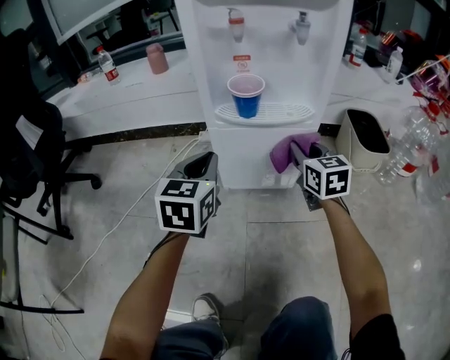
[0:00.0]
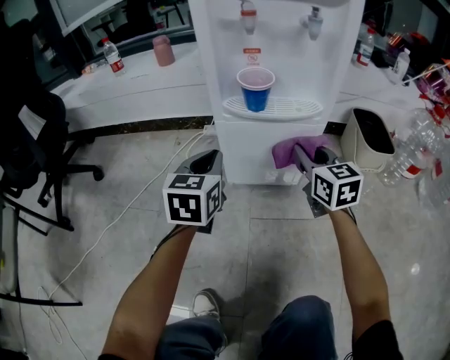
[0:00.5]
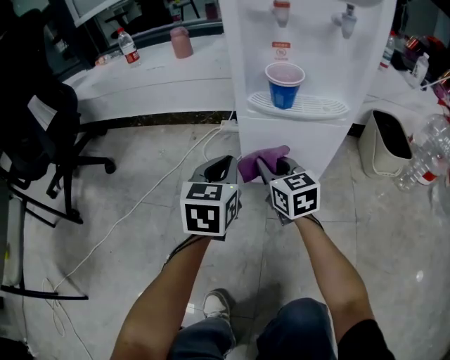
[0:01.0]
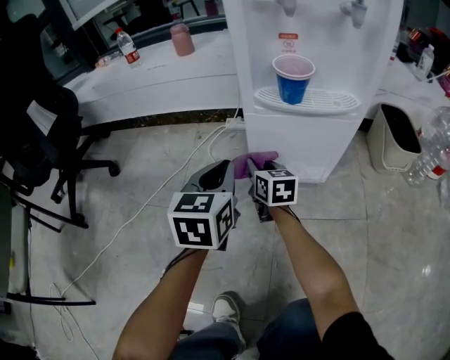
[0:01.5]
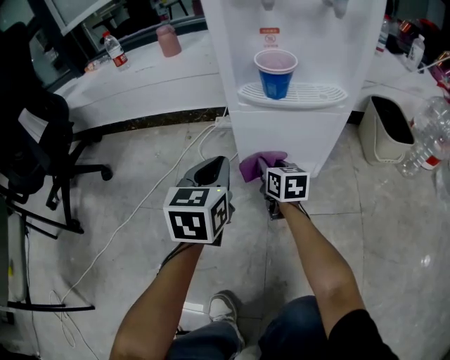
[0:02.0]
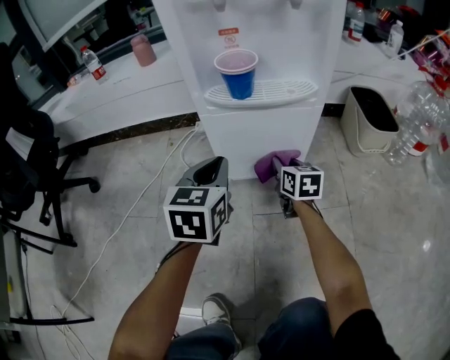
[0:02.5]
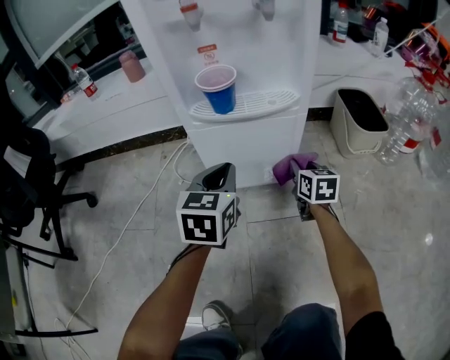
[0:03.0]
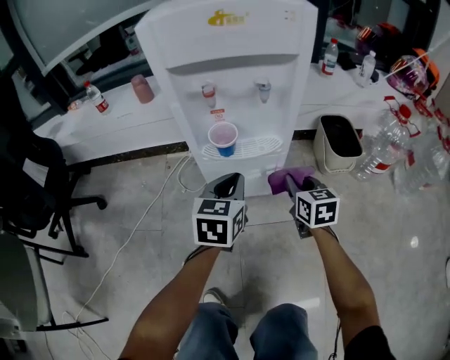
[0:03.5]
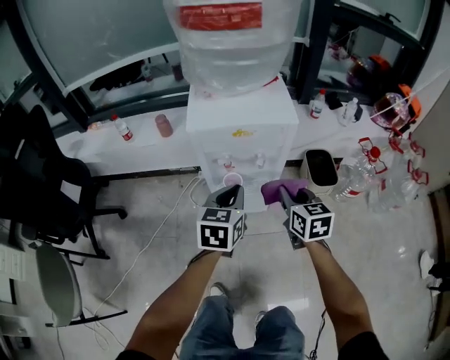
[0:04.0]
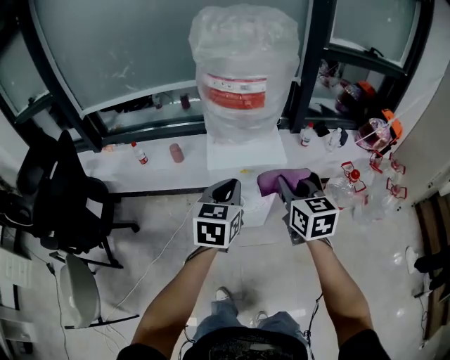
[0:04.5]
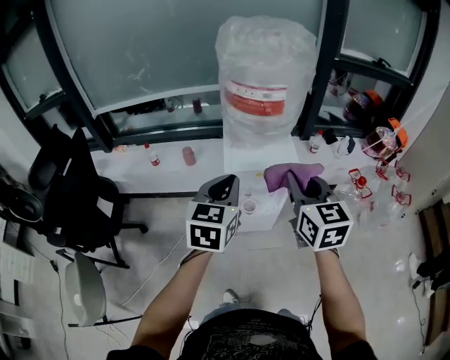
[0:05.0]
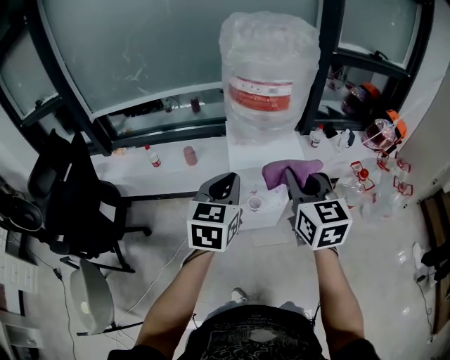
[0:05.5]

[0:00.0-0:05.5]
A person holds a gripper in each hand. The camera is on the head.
0:00.0 to 0:02.0: The right gripper moves to the left and downward, approximately 20 cm, and rotates some 20 degrees. The left gripper changes place by about 5 cm.
0:02.0 to 0:03.5: Both grippers move to the right and upward, about 25 cm.
0:03.5 to 0:05.5: The two grippers go about 60 cm upward. The right gripper changes its angle by roughly 20 degrees.

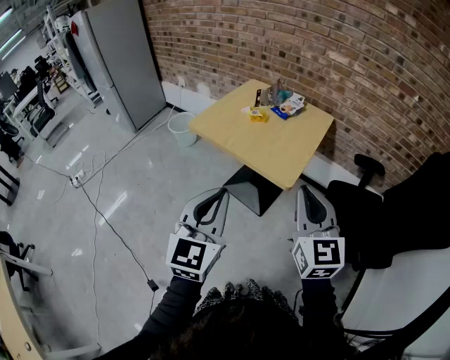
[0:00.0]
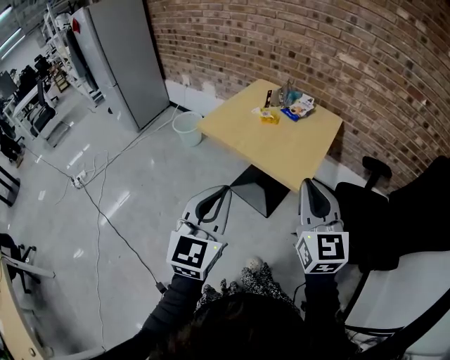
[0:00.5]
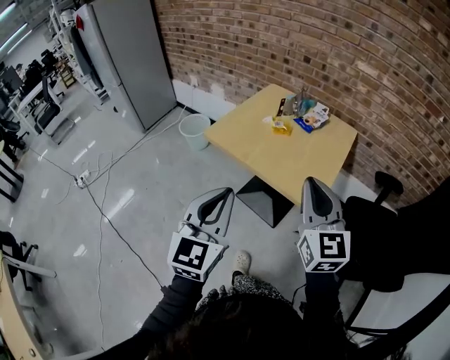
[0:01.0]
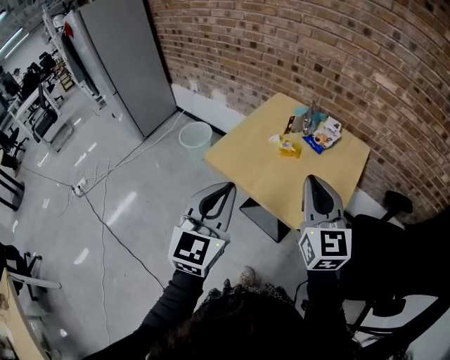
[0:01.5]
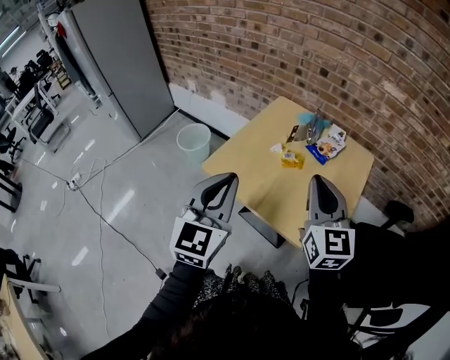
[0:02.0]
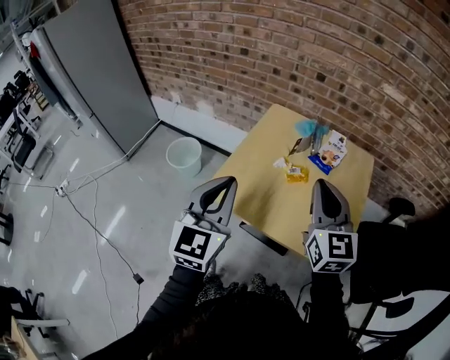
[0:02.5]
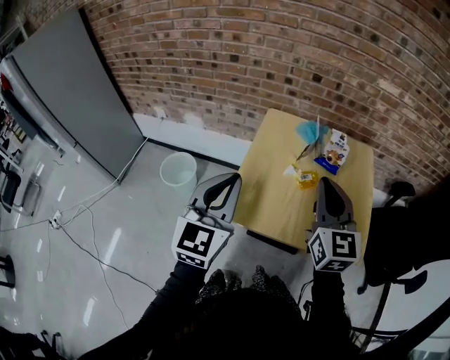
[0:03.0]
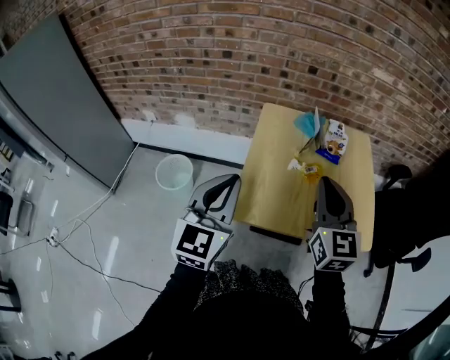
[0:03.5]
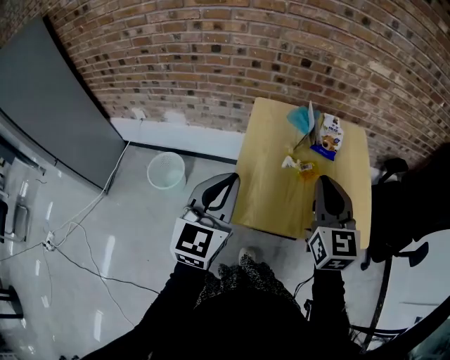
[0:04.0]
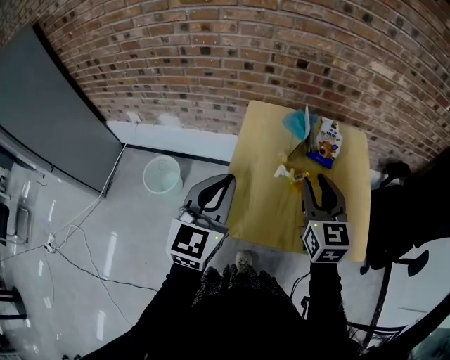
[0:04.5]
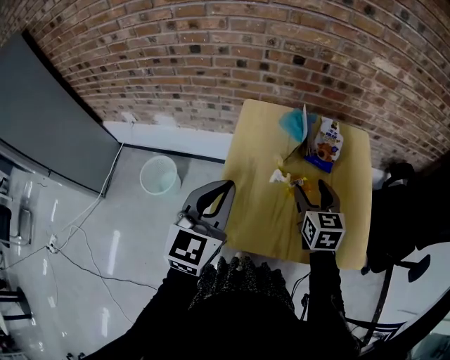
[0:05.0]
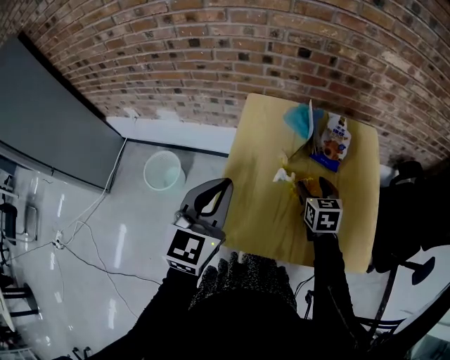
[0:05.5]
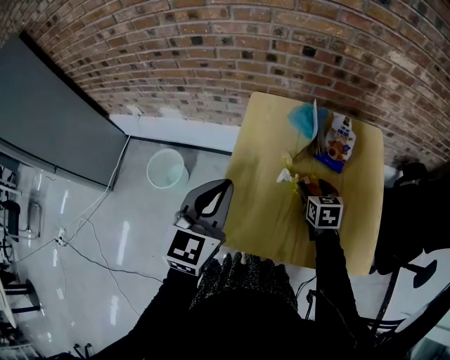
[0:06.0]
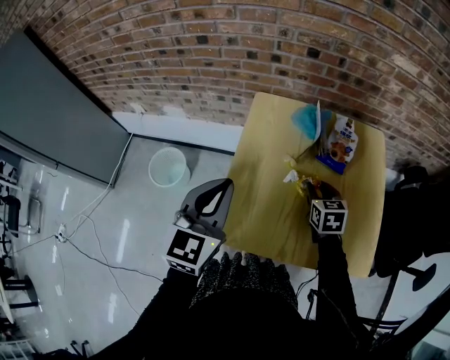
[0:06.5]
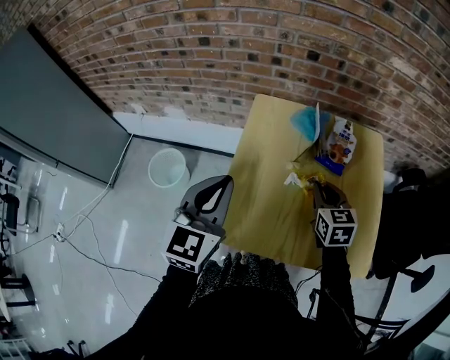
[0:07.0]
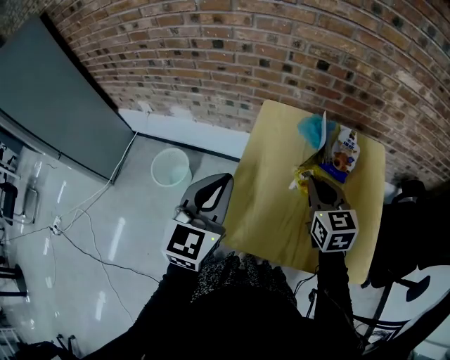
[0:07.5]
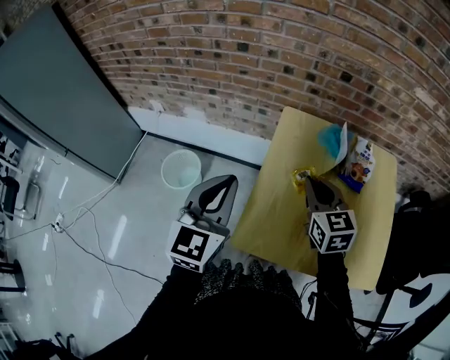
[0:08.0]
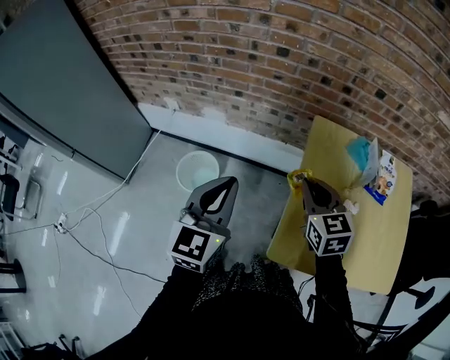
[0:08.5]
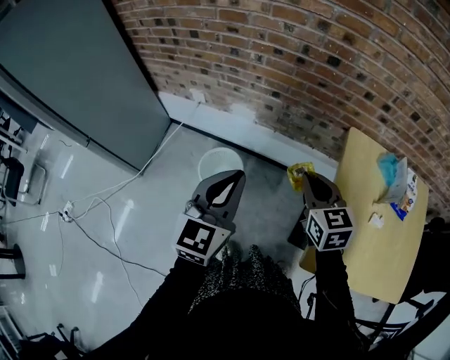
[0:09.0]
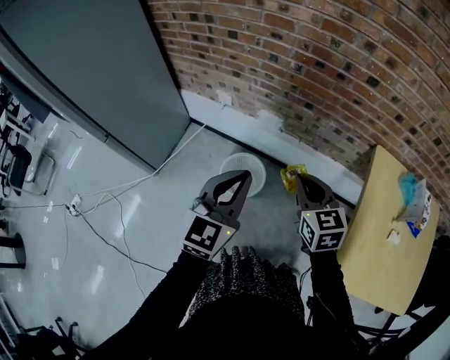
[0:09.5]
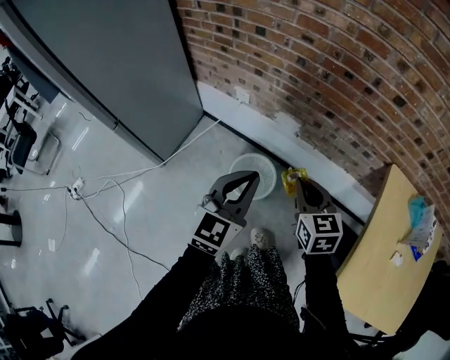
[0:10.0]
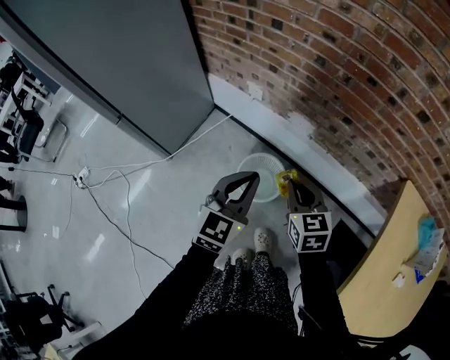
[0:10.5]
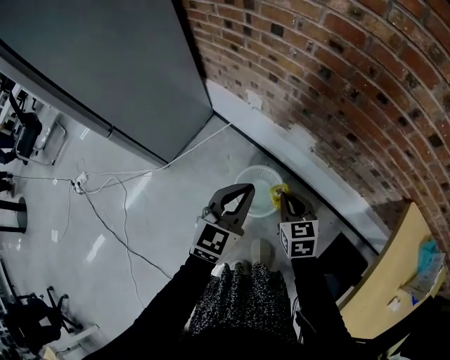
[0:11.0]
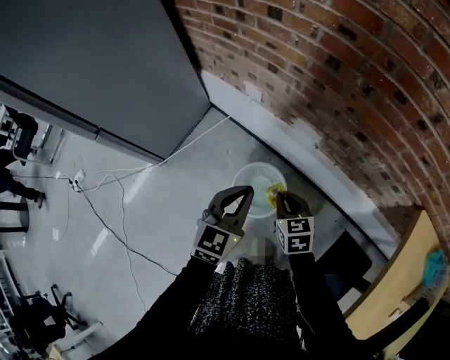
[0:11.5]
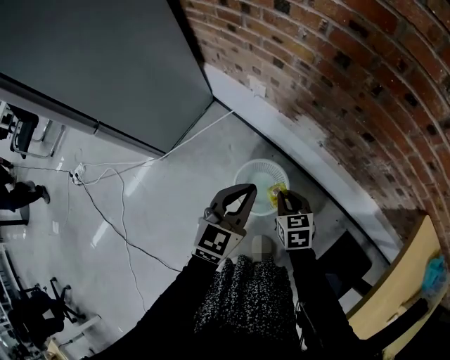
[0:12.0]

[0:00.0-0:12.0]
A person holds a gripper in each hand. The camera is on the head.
0:00.0 to 0:02.0: The two grippers go roughly 35 cm forward.
0:02.0 to 0:04.0: The left gripper moves approximately 25 cm, and changes its angle by roughly 30 degrees; the right gripper ends up about 15 cm from where it was, and turns by some 30 degrees.
0:04.0 to 0:06.0: The right gripper travels downward and forward by some 30 cm, tilts its fingers some 40 degrees downward, and opens its fingers; the left gripper shifts approximately 10 cm forward and downward.
0:06.0 to 0:08.0: The left gripper shifts some 10 cm to the left; the right gripper heads upward and to the left, covering approximately 20 cm, rotates about 30 degrees, and closes its fingers.
0:08.0 to 0:10.0: The pair of grippers is taken to the left, approximately 40 cm.
0:10.0 to 0:12.0: The two grippers go approximately 25 cm downward and forward. The right gripper changes its angle by roughly 20 degrees.

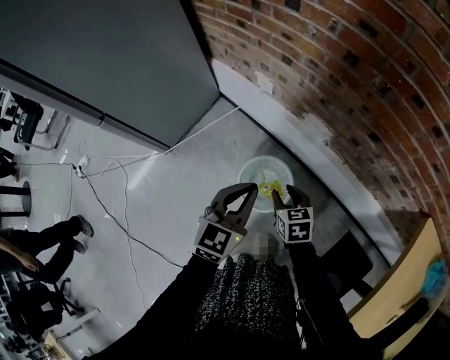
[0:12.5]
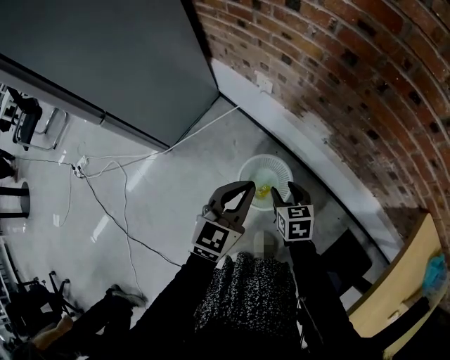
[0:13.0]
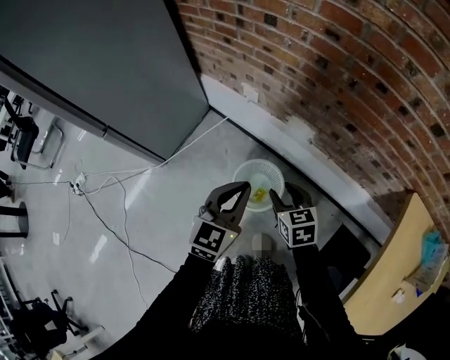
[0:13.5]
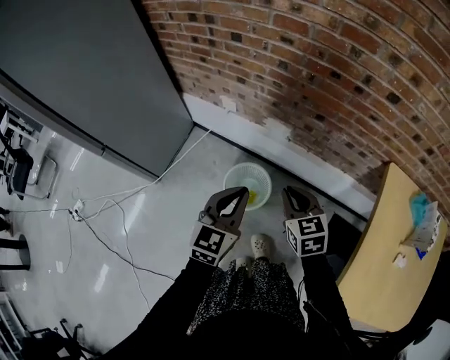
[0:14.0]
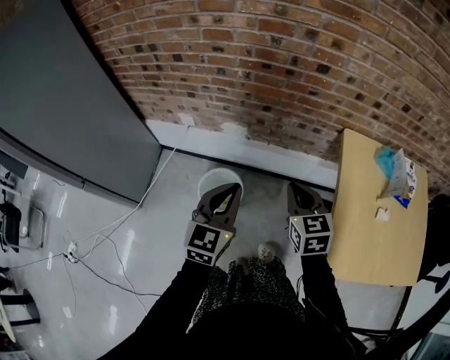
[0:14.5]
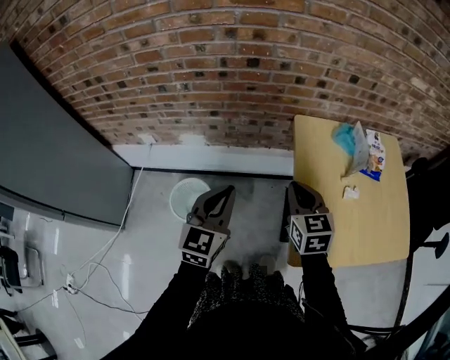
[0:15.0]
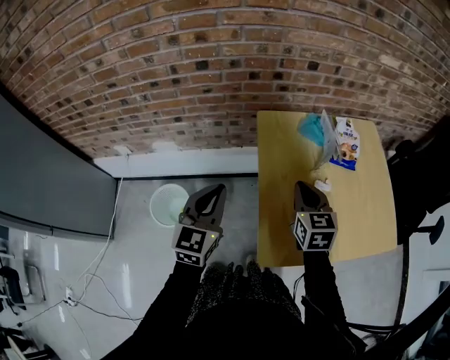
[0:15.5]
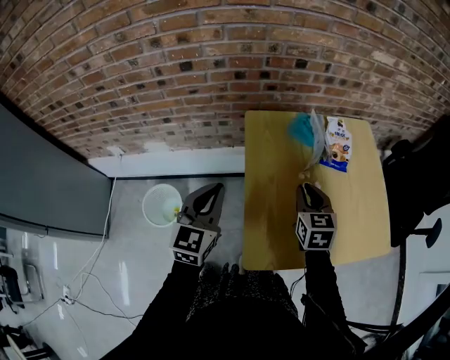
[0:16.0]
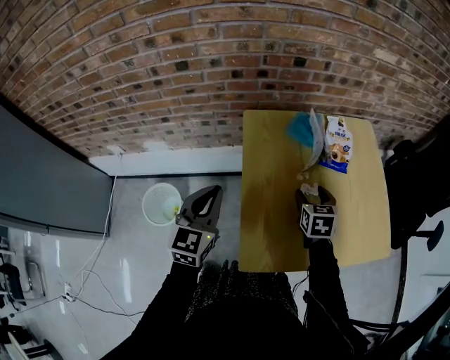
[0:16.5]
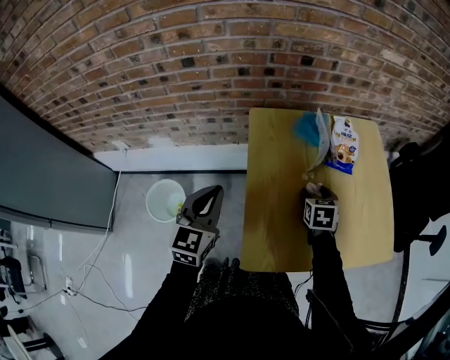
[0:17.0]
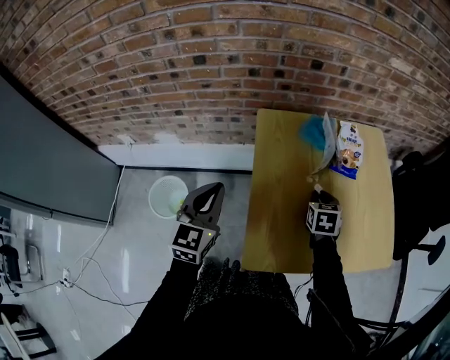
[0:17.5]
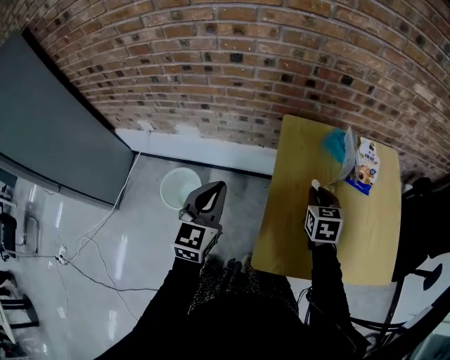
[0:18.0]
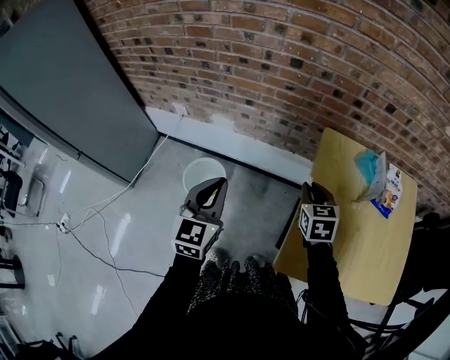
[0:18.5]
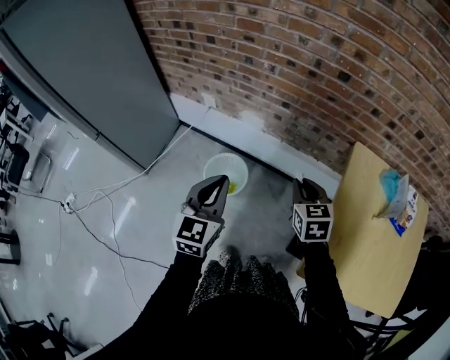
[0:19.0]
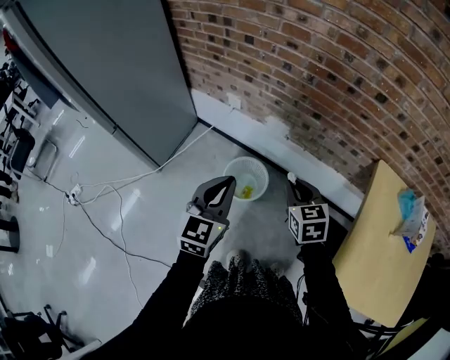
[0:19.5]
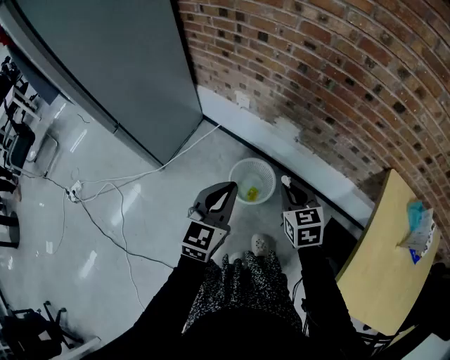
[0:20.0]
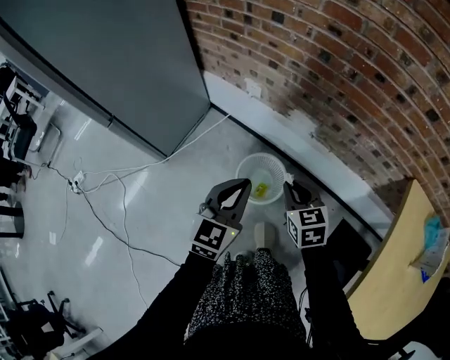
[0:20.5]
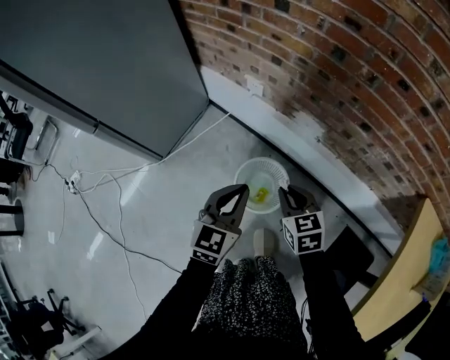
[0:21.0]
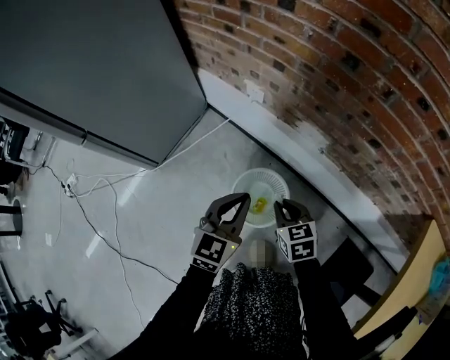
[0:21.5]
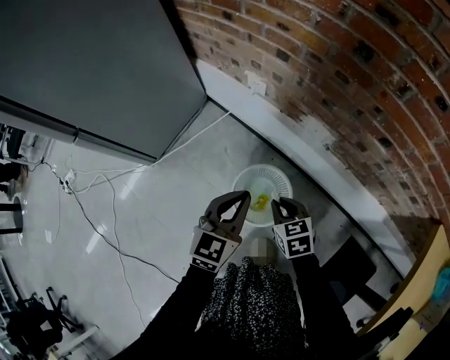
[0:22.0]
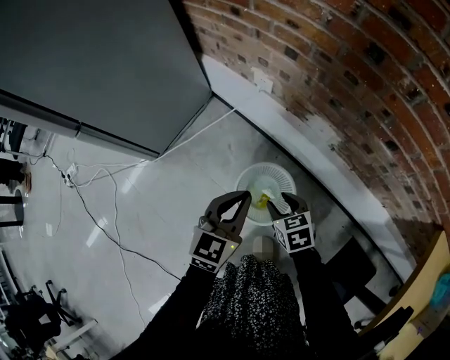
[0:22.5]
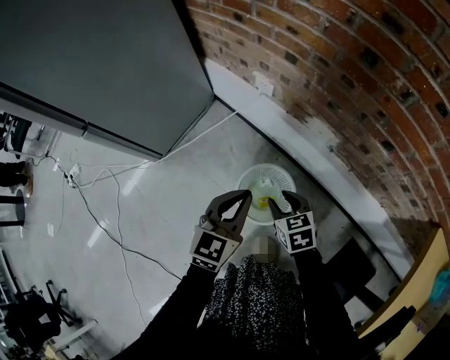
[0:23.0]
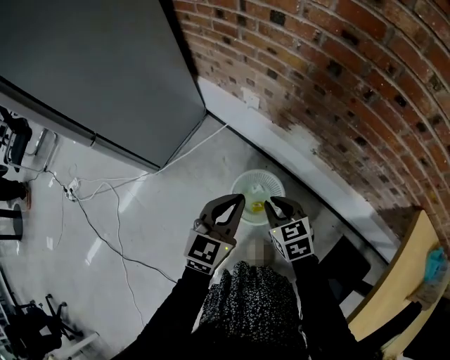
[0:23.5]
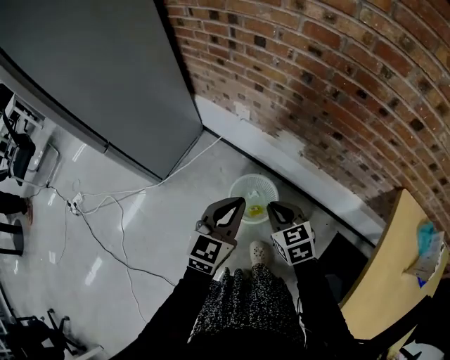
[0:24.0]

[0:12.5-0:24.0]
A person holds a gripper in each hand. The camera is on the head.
0:12.5 to 0:14.5: The right gripper goes approximately 30 cm upward, swivels roughly 40 degrees, and closes its fingers. Meanwhile the left gripper goes some 20 cm upward, and changes its angle by roughly 20 degrees.
0:14.5 to 0:16.5: The two grippers go roughly 35 cm to the right. The right gripper swivels roughly 30 degrees, and opens its fingers.
0:16.5 to 0:18.5: The left gripper travels to the left and backward by about 20 cm, and turns by approximately 20 degrees, while the right gripper travels to the left by roughly 25 cm, rotates some 30 degrees, and closes its fingers.
0:18.5 to 0:20.0: The grippers both shift to the left by approximately 30 cm. The right gripper rotates roughly 30 degrees.
0:20.0 to 0:22.0: The two grippers go some 30 cm downward and forward.
0:22.0 to 0:24.0: The left gripper is displaced upward and backward by approximately 20 cm, while the right gripper travels upward by approximately 20 cm, and opens, then closes once more.
